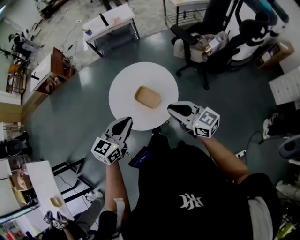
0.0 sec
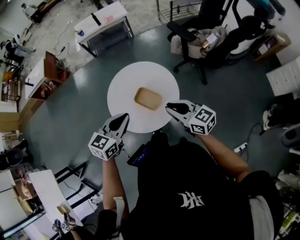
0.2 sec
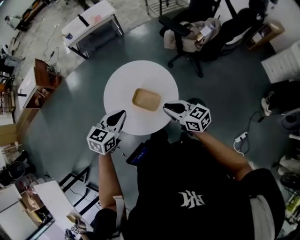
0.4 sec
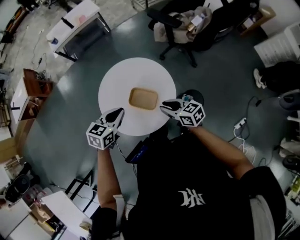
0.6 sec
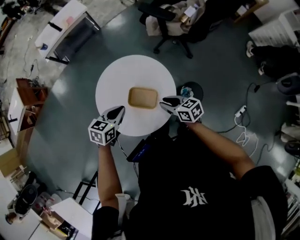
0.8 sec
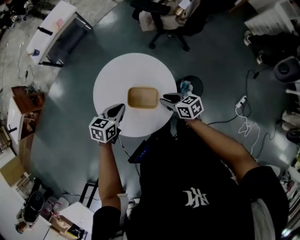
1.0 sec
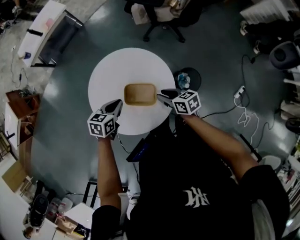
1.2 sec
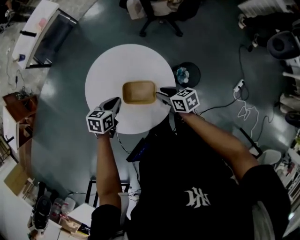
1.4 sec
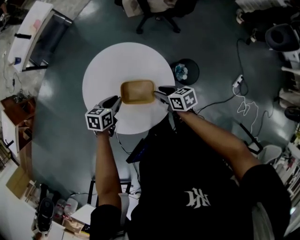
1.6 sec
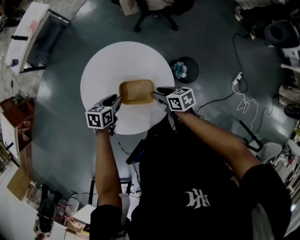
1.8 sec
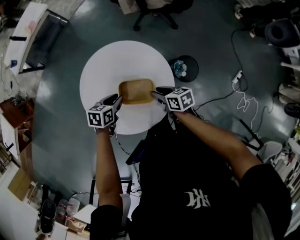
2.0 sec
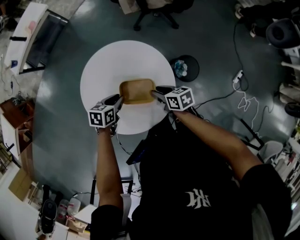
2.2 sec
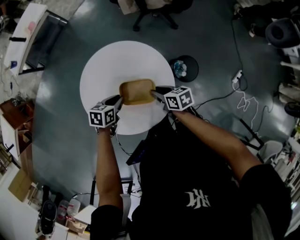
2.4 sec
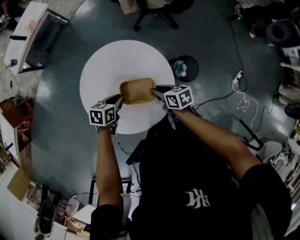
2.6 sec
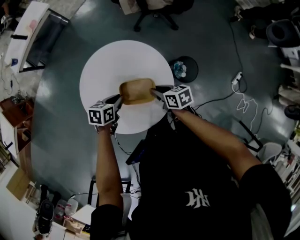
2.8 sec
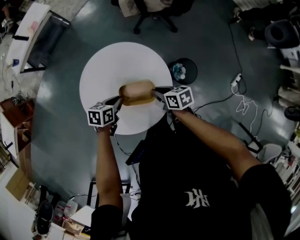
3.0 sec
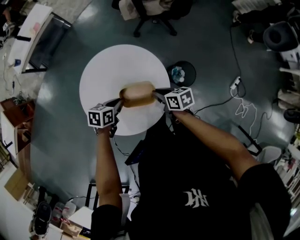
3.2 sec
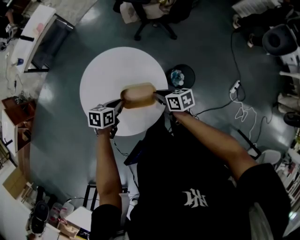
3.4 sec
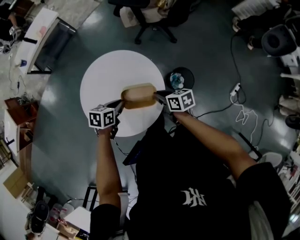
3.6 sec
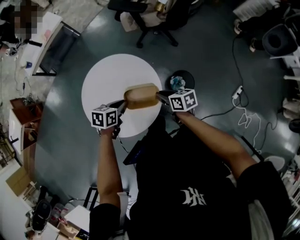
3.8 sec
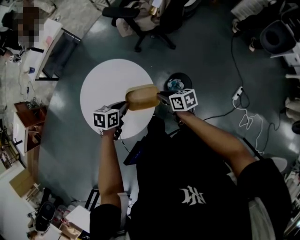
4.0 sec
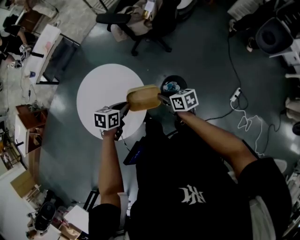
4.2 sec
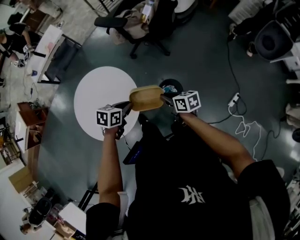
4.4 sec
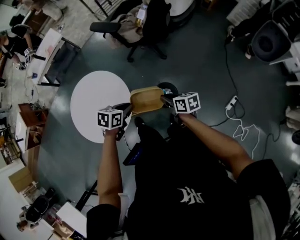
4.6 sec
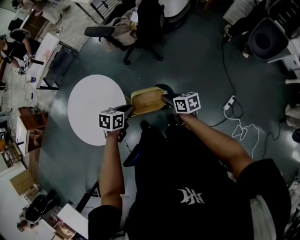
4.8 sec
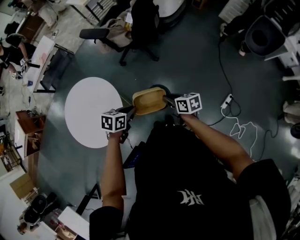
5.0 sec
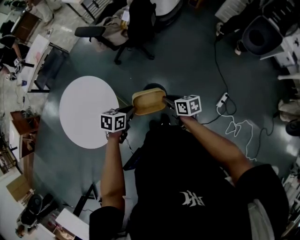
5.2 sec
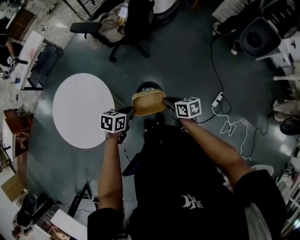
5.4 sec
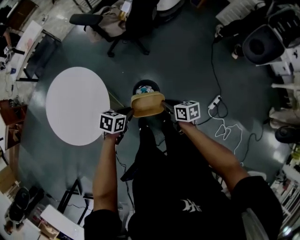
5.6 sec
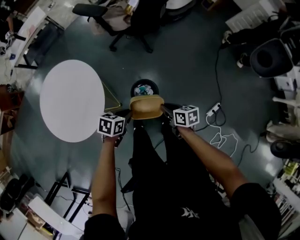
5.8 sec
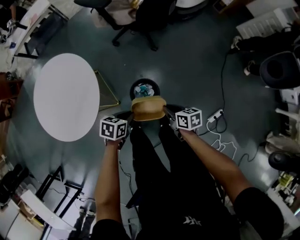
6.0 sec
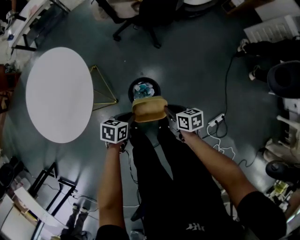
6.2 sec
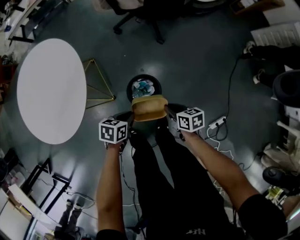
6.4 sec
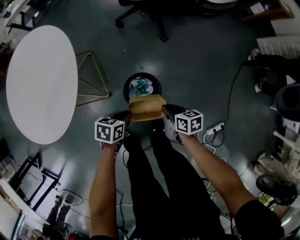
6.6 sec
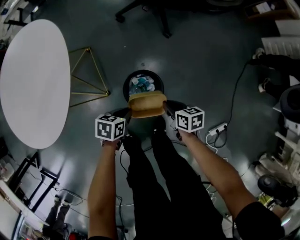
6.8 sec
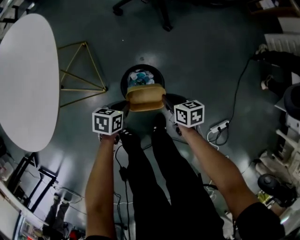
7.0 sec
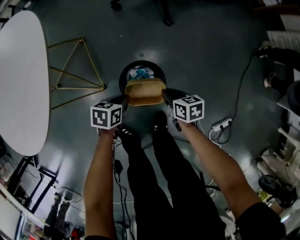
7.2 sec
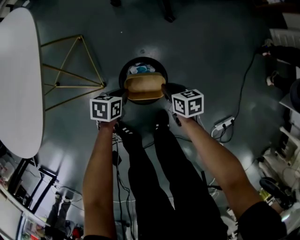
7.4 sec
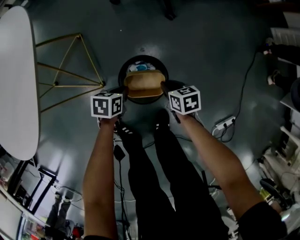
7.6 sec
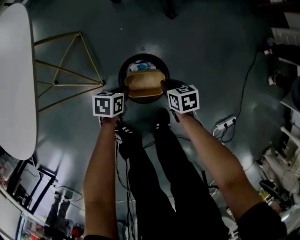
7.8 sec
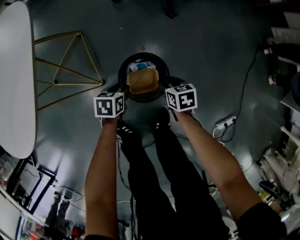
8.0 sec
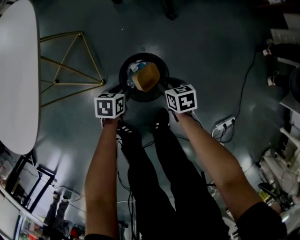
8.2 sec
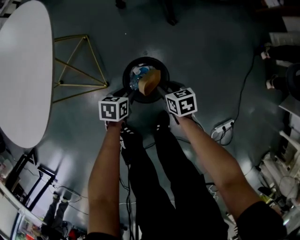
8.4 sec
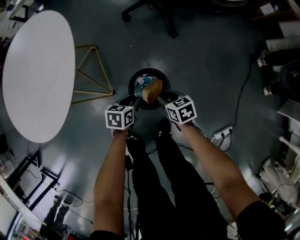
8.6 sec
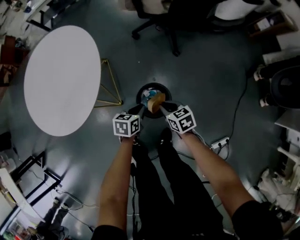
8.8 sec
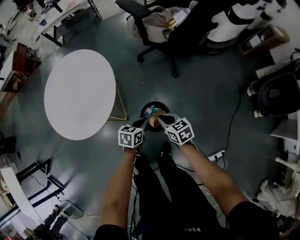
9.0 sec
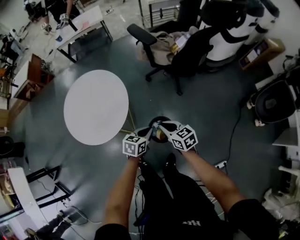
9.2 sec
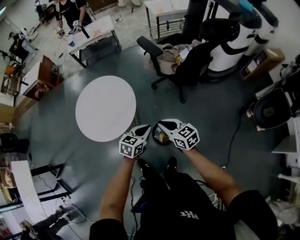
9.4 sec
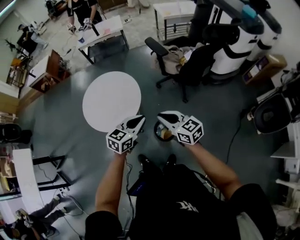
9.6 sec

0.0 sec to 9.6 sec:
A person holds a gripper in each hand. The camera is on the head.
0.0 sec to 1.6 sec: The two grippers go about 30 cm downward. The left gripper tips its fingers downward by roughly 30 degrees. Meanwhile the right gripper tilts its fingers some 40 degrees downward, and opens up.
1.6 sec to 3.2 sec: The right gripper closes.
3.2 sec to 4.8 sec: The grippers both shift to the right by some 35 cm.
4.8 sec to 6.4 sec: The right gripper travels downward and to the right by approximately 25 cm, and swivels about 20 degrees, while the left gripper travels downward by about 30 cm, and turns by approximately 20 degrees.
6.4 sec to 8.0 sec: Both grippers move downward, approximately 25 cm. The left gripper opens up; the right gripper opens its fingers.
8.0 sec to 9.6 sec: Both grippers travel together upward, approximately 70 cm. The right gripper tilts its fingers about 40 degrees upward, and closes up; the left gripper angles its fingers upward, by approximately 40 degrees, and closes.

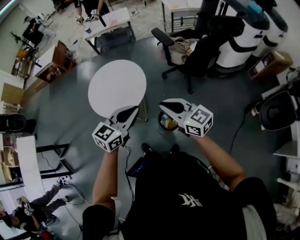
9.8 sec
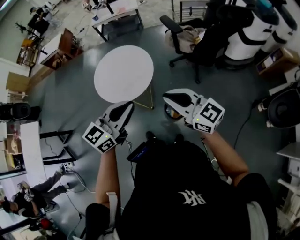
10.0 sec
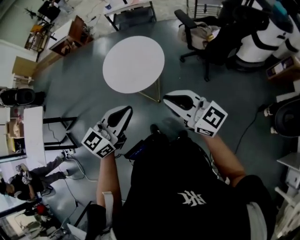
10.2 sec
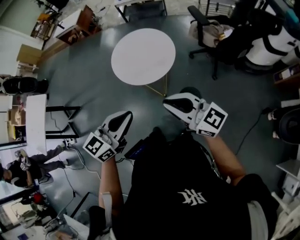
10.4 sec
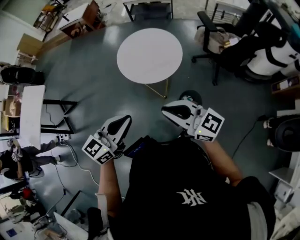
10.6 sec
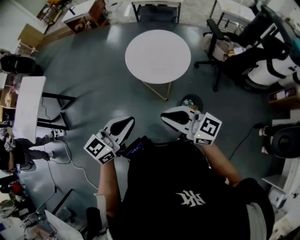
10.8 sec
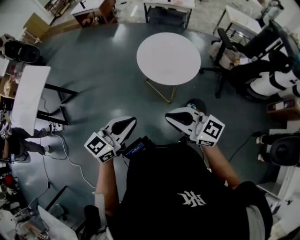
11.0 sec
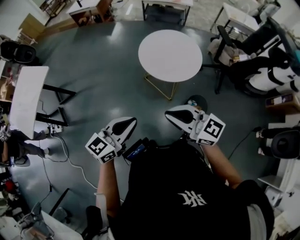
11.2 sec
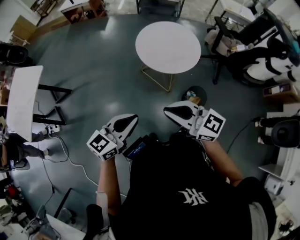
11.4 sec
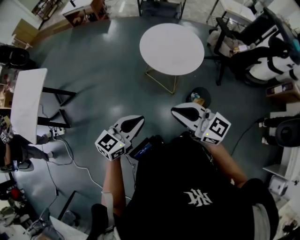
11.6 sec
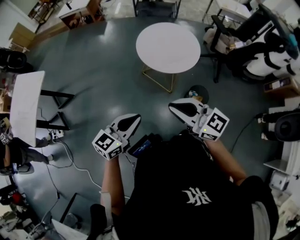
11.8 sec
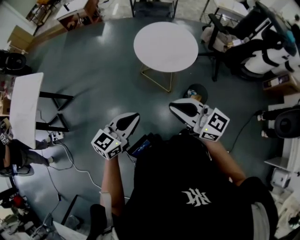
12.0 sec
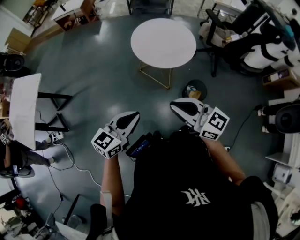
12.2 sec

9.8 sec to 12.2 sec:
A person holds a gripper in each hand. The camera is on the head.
9.8 sec to 11.0 sec: The two grippers go approximately 35 cm to the left and backward. The left gripper turns by some 20 degrees. The right gripper turns by about 30 degrees.
11.0 sec to 12.2 sec: The right gripper shifts approximately 5 cm to the left. Meanwhile the left gripper goes roughly 10 cm to the left and downward.

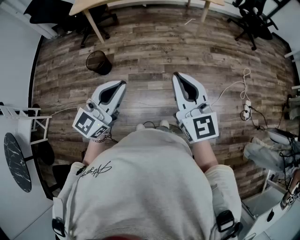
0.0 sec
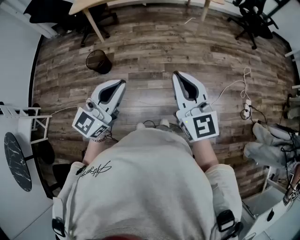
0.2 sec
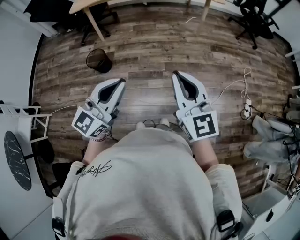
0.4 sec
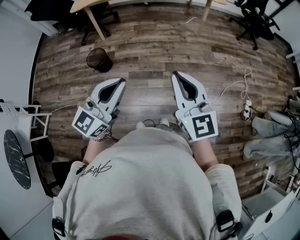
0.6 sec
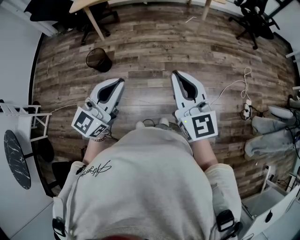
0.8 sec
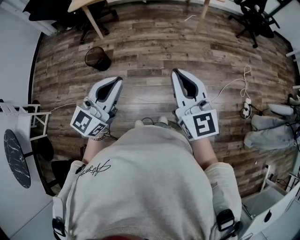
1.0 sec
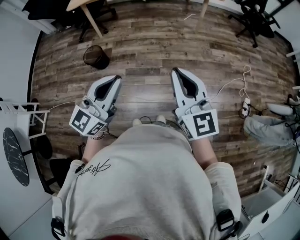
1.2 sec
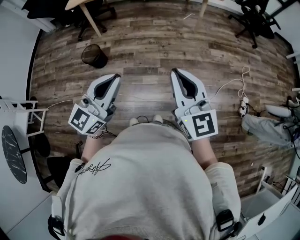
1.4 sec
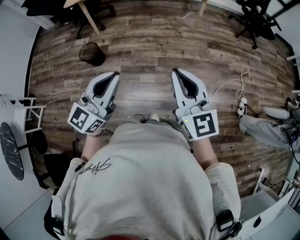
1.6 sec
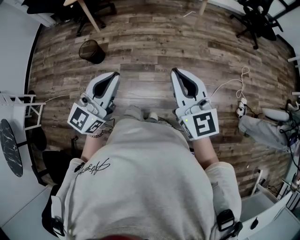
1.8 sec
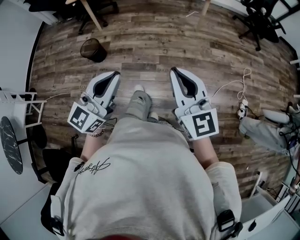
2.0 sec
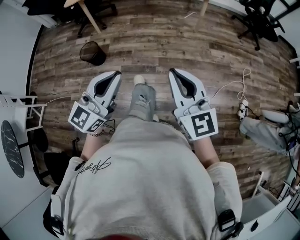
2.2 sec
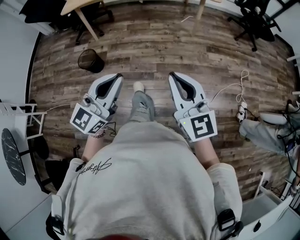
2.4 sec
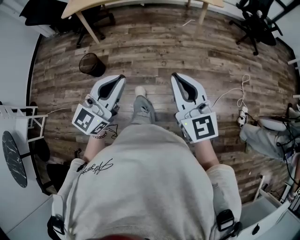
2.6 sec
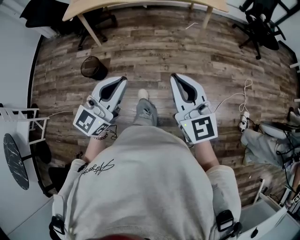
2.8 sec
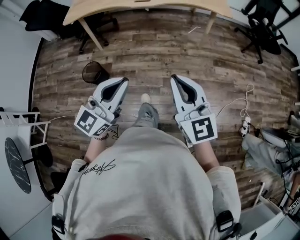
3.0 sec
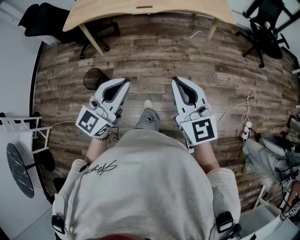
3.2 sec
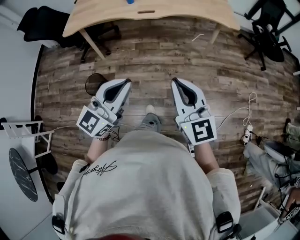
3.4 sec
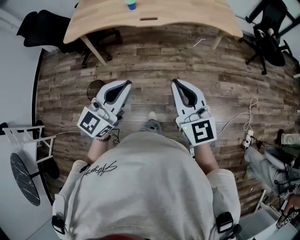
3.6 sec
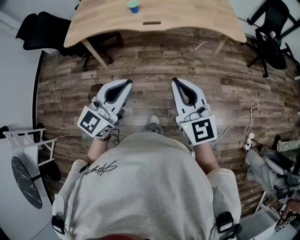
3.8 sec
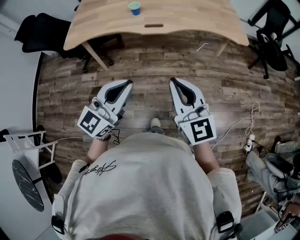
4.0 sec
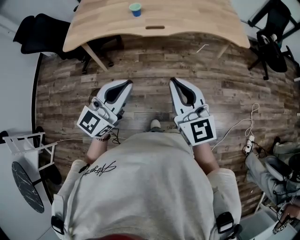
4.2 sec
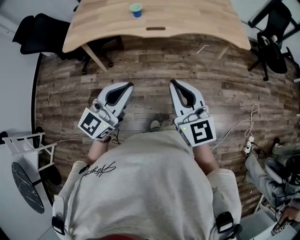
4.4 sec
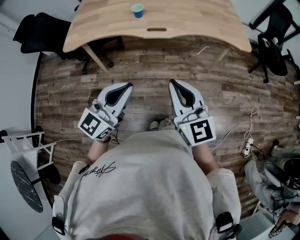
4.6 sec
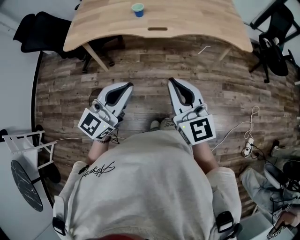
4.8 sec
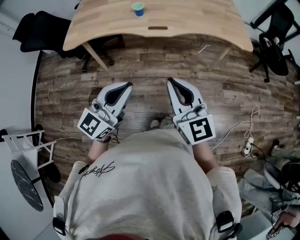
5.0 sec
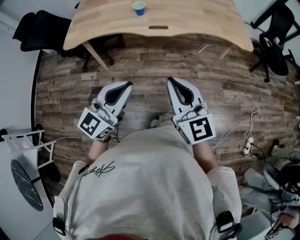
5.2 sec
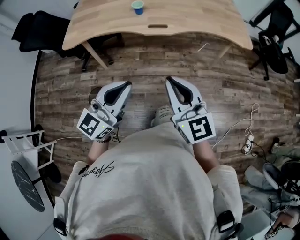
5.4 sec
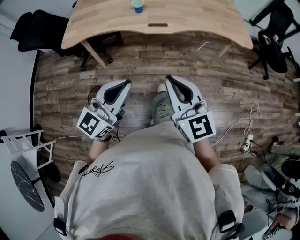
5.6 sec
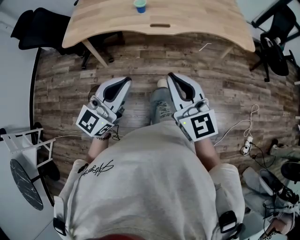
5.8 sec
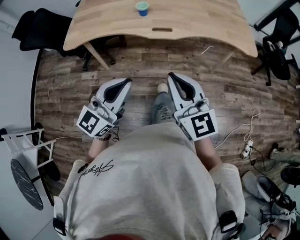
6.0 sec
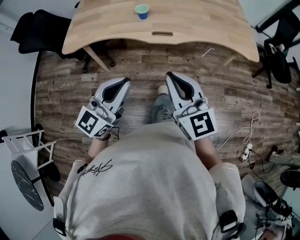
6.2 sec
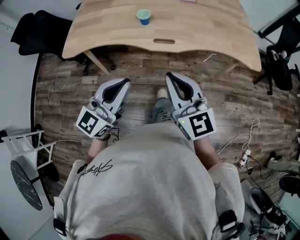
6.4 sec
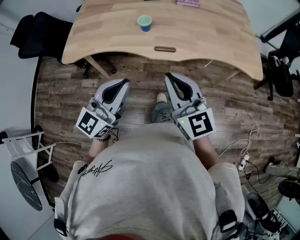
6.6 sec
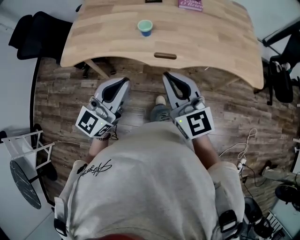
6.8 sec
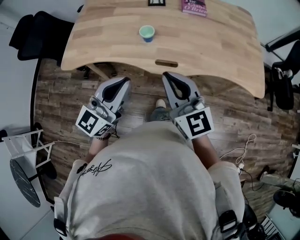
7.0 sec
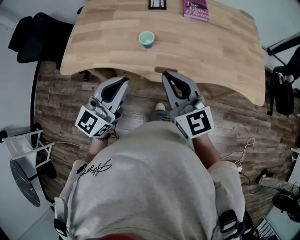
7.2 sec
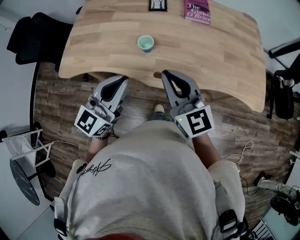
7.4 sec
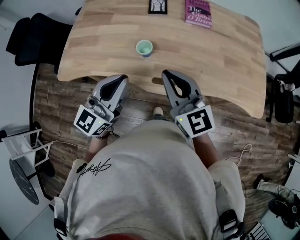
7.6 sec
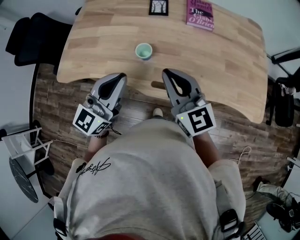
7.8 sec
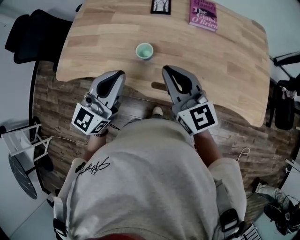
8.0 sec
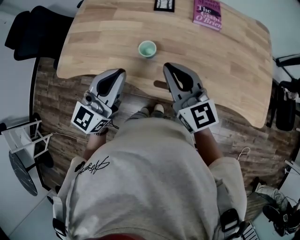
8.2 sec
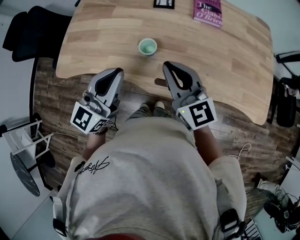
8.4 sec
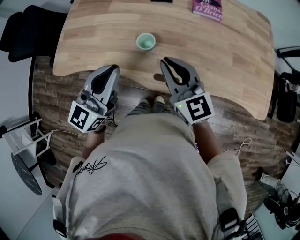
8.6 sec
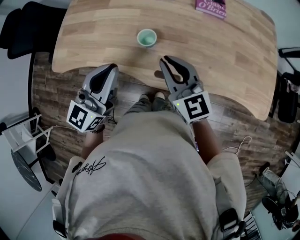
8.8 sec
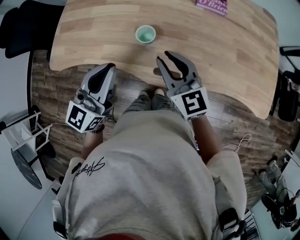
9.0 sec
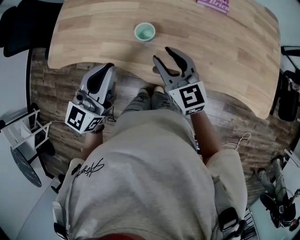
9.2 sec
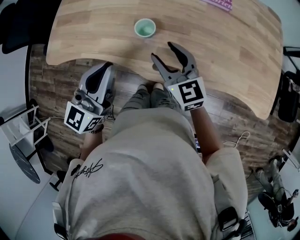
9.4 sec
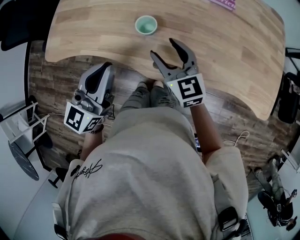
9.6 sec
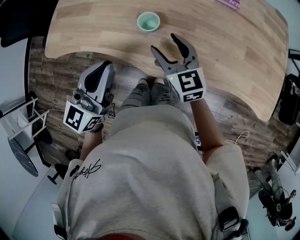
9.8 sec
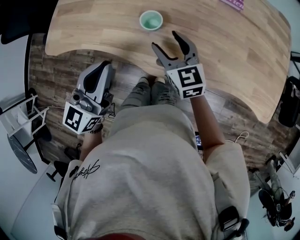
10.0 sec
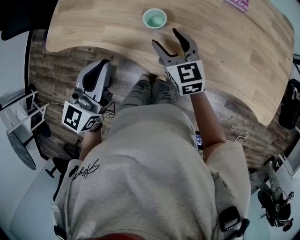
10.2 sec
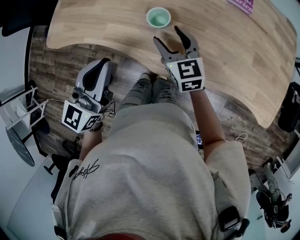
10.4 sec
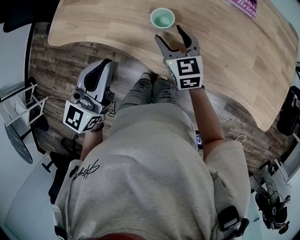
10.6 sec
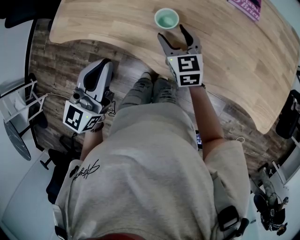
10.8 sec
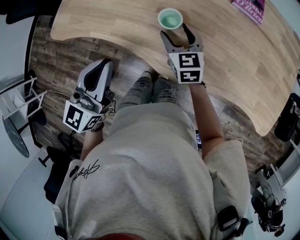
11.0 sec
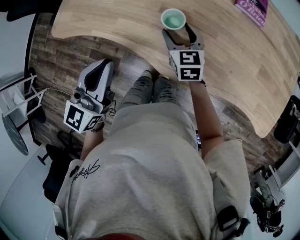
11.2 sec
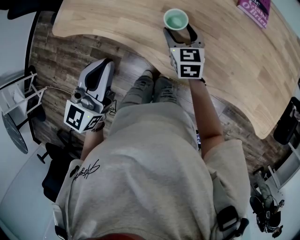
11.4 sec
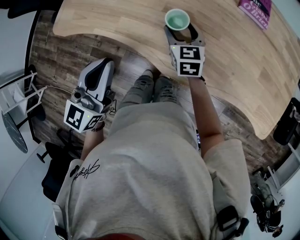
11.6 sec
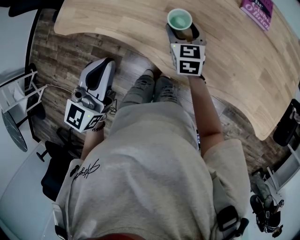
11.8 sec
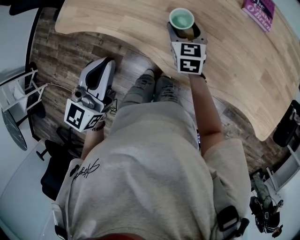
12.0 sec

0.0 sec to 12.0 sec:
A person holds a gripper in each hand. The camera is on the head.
0.0 sec to 1.6 sec: Both grippers move to the right, roughly 10 cm.
1.6 sec to 3.0 sec: Both grippers travel together forward, approximately 15 cm.
3.0 sec to 4.4 sec: The two grippers go about 25 cm forward and to the left.
4.4 sec to 6.0 sec: The right gripper goes some 5 cm forward. The left gripper shifts by approximately 5 cm.
6.0 sec to 7.6 sec: Both grippers travel together forward, some 35 cm.
7.6 sec to 9.0 sec: The left gripper ends up about 5 cm from where it was. The right gripper travels downward and forward by some 10 cm.
9.0 sec to 10.4 sec: The left gripper shifts by about 5 cm, while the right gripper shifts approximately 10 cm downward and forward, and opens its fingers.
10.4 sec to 12.0 sec: The right gripper goes about 10 cm forward and downward.
